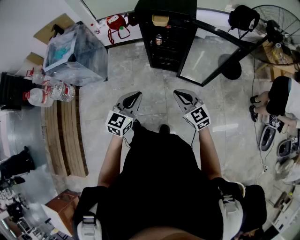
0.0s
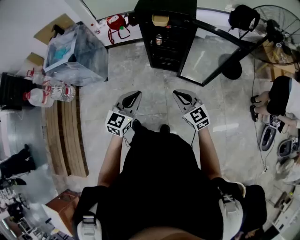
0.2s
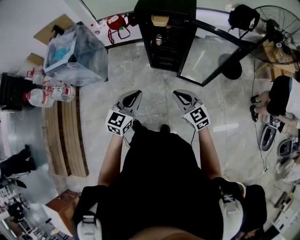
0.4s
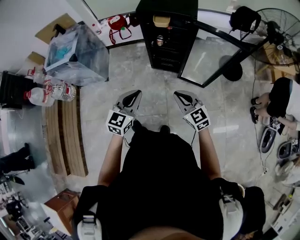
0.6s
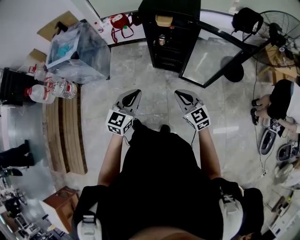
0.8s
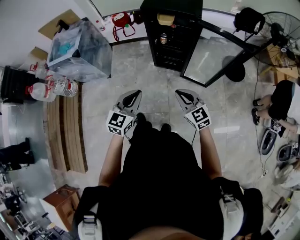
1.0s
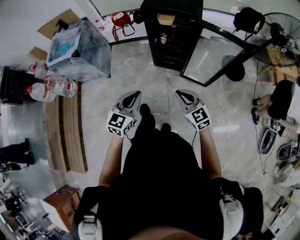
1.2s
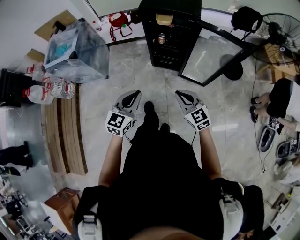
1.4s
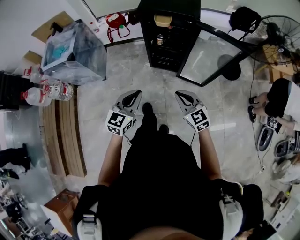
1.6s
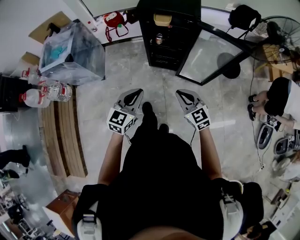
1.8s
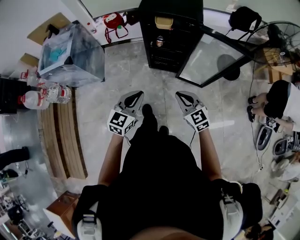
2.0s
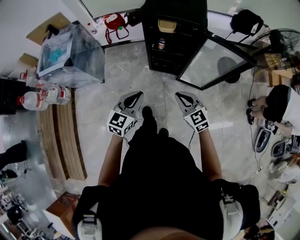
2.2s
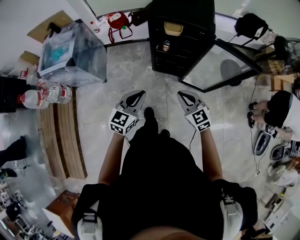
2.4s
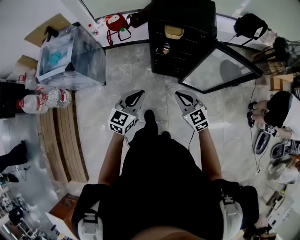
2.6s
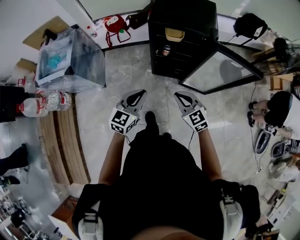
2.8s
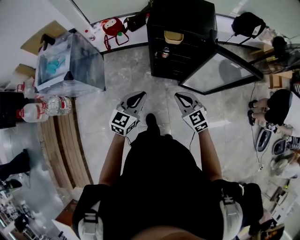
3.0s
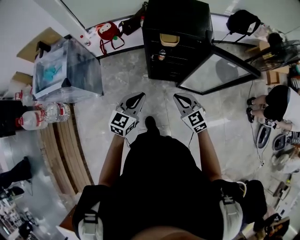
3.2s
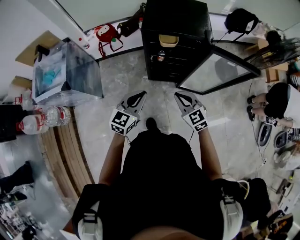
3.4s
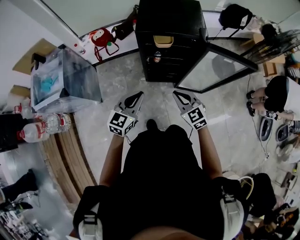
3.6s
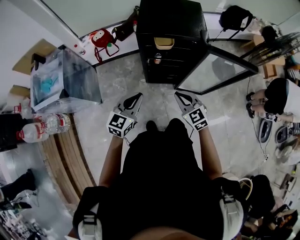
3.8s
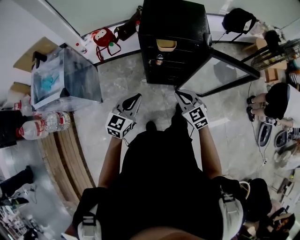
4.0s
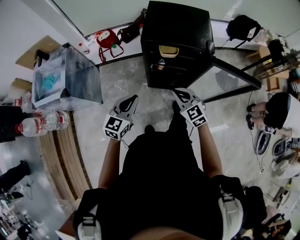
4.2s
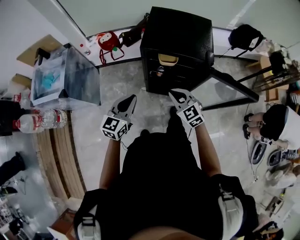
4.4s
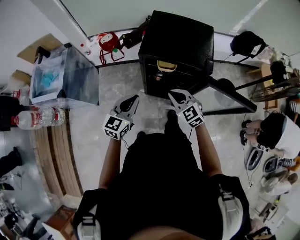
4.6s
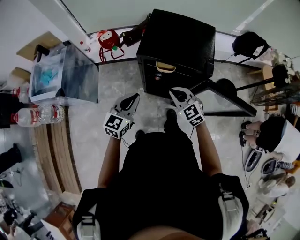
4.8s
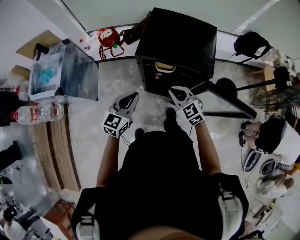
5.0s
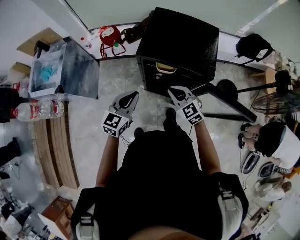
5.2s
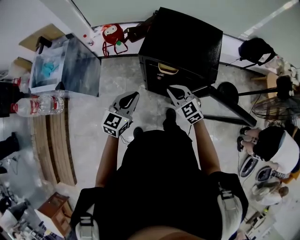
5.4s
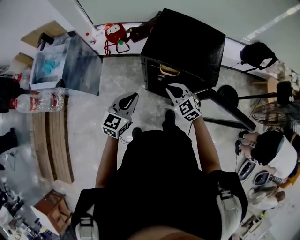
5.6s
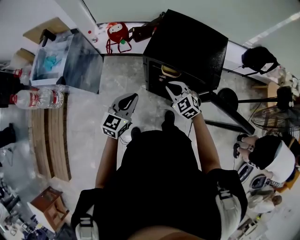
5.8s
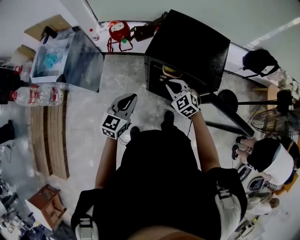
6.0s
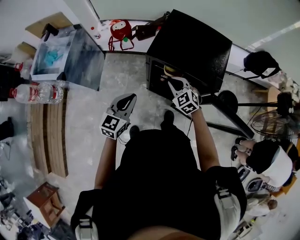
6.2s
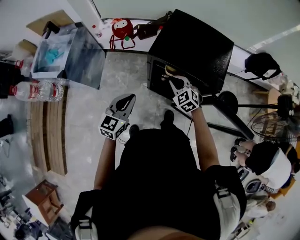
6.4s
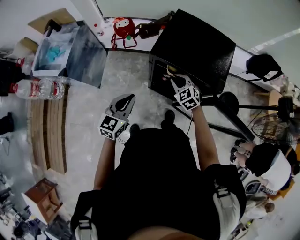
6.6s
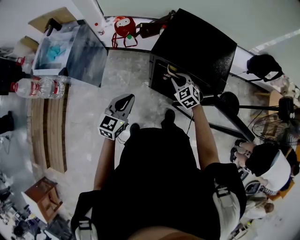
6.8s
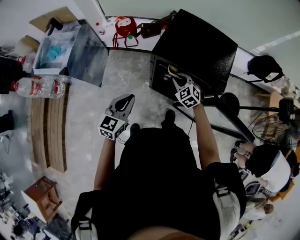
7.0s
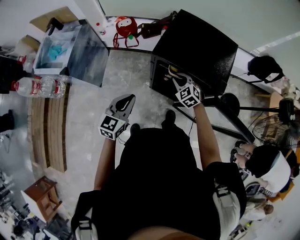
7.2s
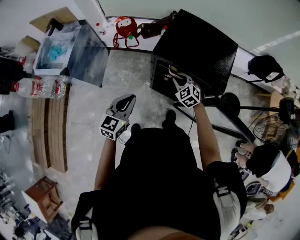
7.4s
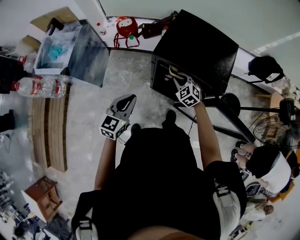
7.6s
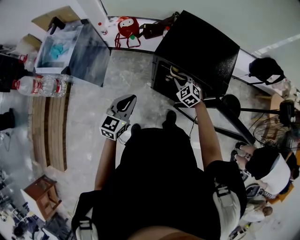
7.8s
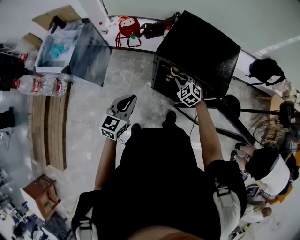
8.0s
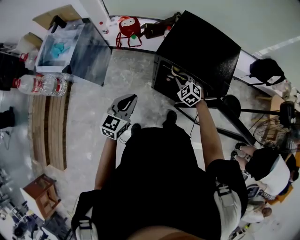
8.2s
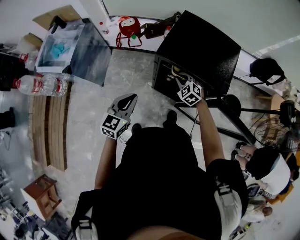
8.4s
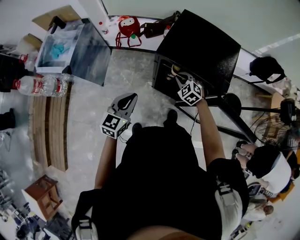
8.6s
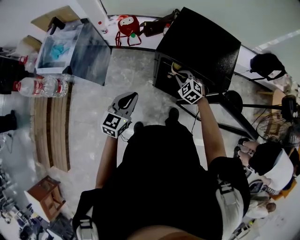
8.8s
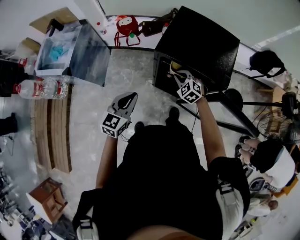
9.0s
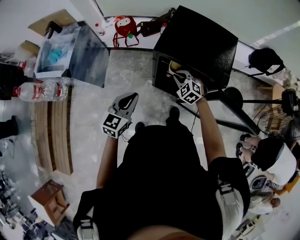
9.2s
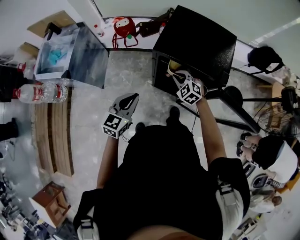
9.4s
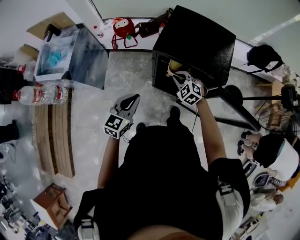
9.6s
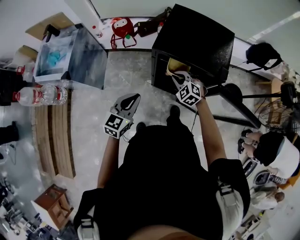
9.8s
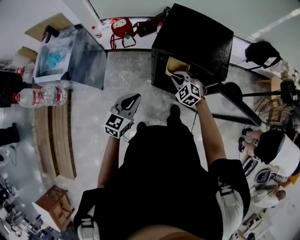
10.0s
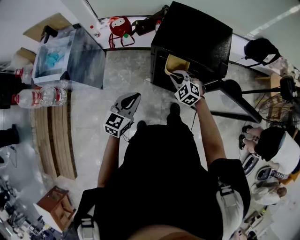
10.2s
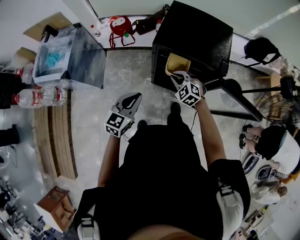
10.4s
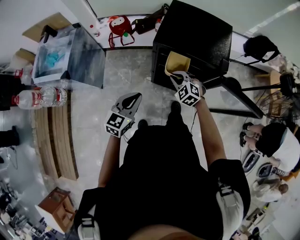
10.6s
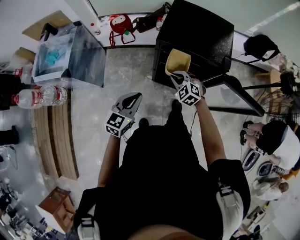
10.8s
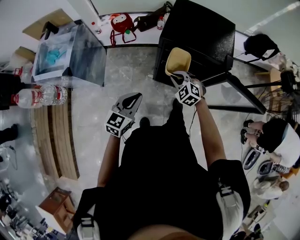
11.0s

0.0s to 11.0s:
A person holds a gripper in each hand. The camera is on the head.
0.0s to 1.6s: There are only small adjustments of the grippers.
1.6s to 3.2s: The left gripper goes approximately 20 cm forward. Meanwhile the right gripper travels forward and to the left by about 20 cm.
3.2s to 4.8s: Both grippers travel together forward, roughly 20 cm.
4.8s to 6.2s: The right gripper travels forward and downward by roughly 10 cm.
6.2s to 7.8s: The right gripper ends up about 5 cm from where it was.
7.8s to 9.4s: There are only small adjustments of the grippers.
9.4s to 11.0s: The right gripper is displaced backward and to the left by about 10 cm; the left gripper heads backward, covering approximately 5 cm.

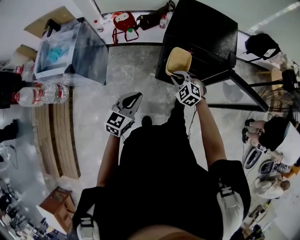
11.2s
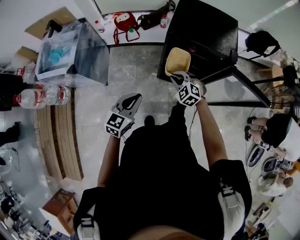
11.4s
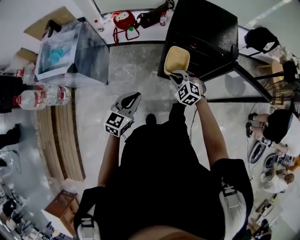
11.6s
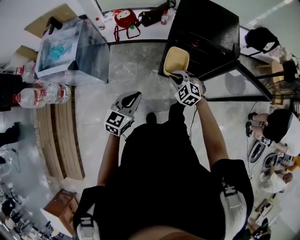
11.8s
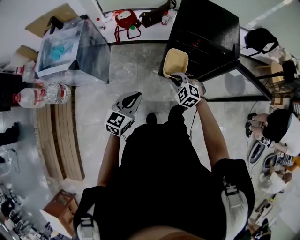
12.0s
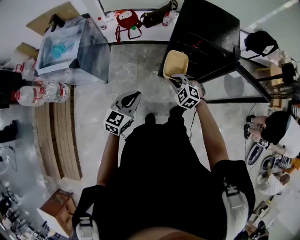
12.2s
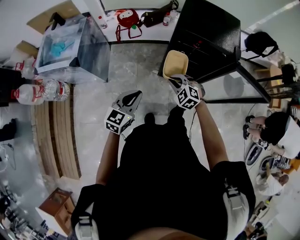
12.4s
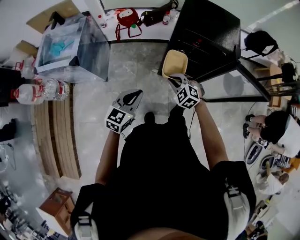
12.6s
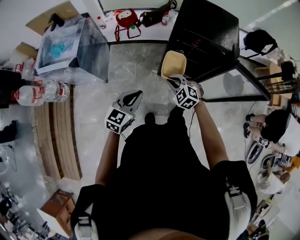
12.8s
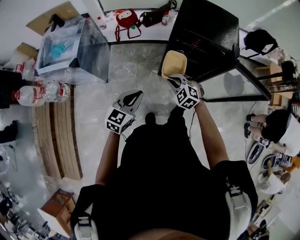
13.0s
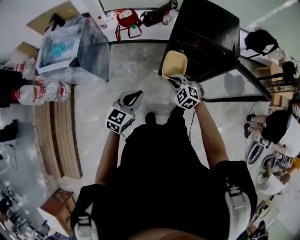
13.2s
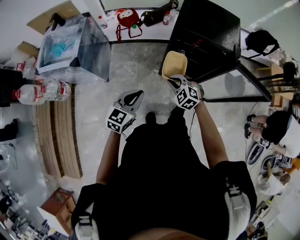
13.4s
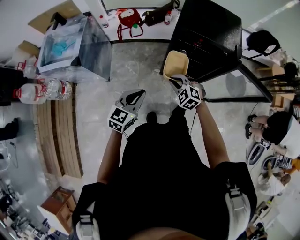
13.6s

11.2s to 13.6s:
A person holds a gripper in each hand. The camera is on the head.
11.2s to 12.4s: The right gripper shifts approximately 10 cm backward and to the left. Meanwhile the left gripper shifts approximately 5 cm to the left.
12.4s to 13.6s: The grippers stay close to where they were, moving slightly.

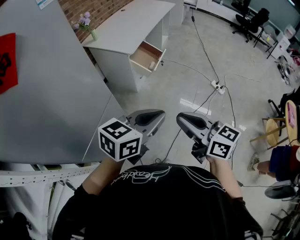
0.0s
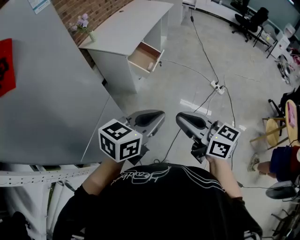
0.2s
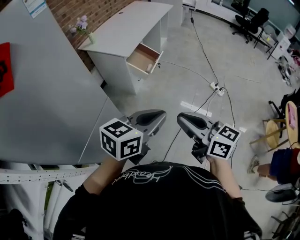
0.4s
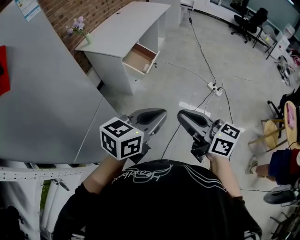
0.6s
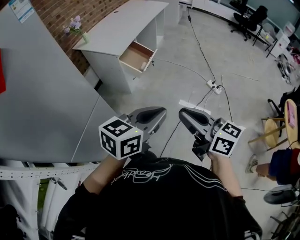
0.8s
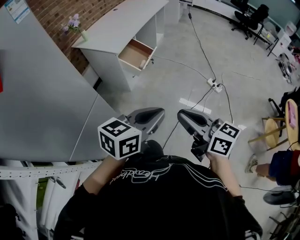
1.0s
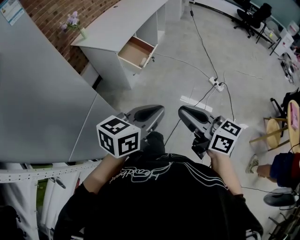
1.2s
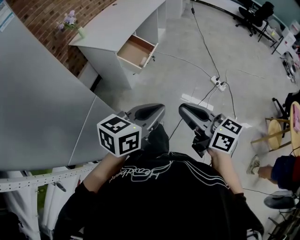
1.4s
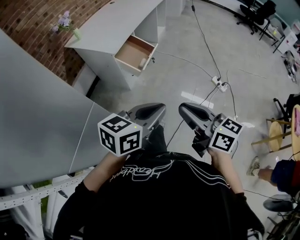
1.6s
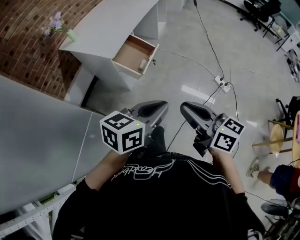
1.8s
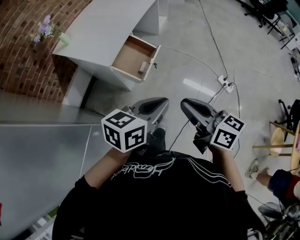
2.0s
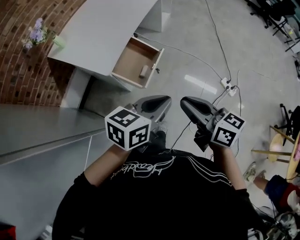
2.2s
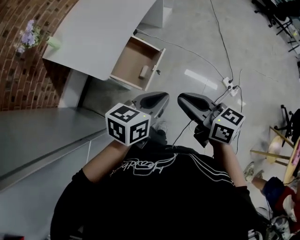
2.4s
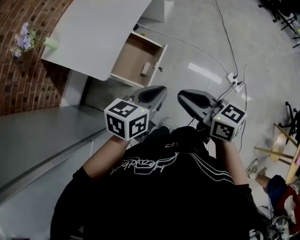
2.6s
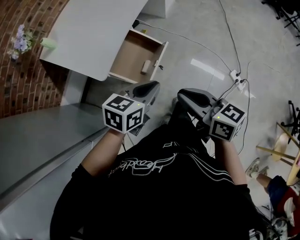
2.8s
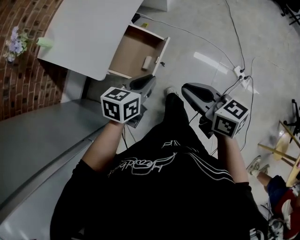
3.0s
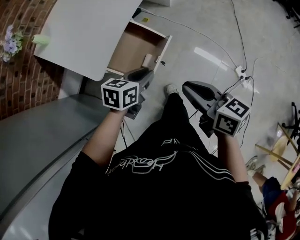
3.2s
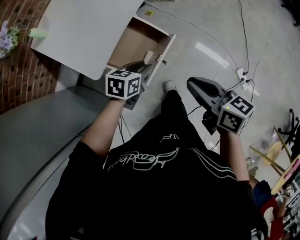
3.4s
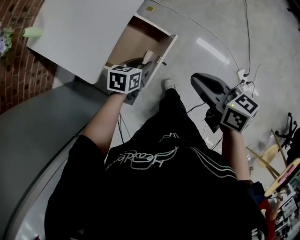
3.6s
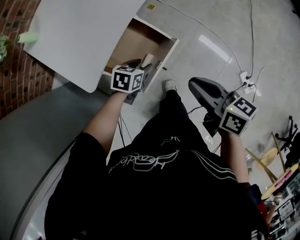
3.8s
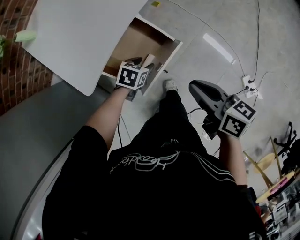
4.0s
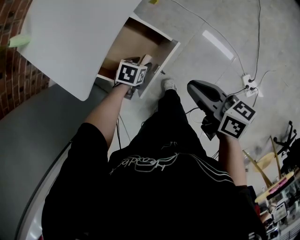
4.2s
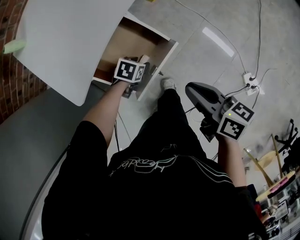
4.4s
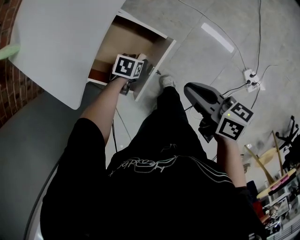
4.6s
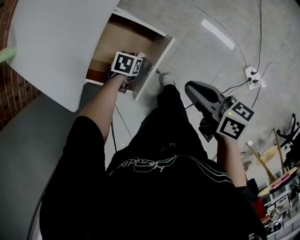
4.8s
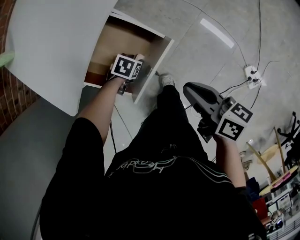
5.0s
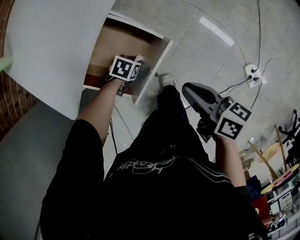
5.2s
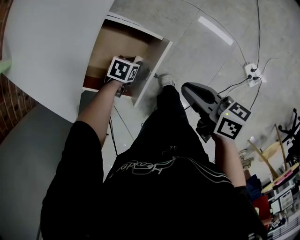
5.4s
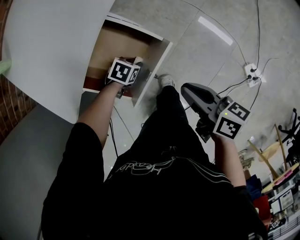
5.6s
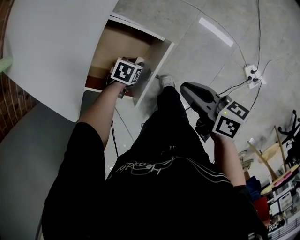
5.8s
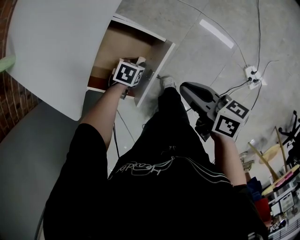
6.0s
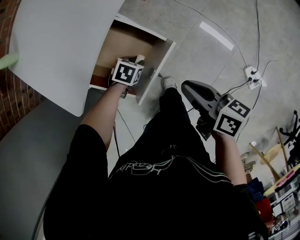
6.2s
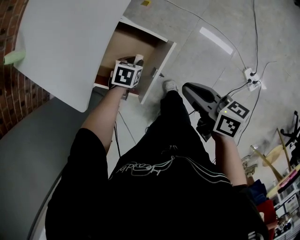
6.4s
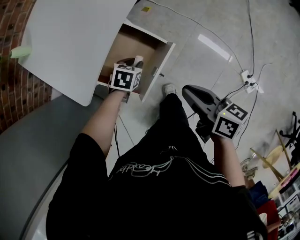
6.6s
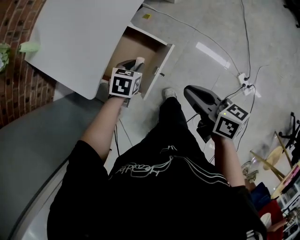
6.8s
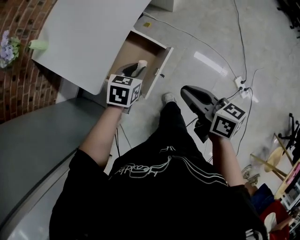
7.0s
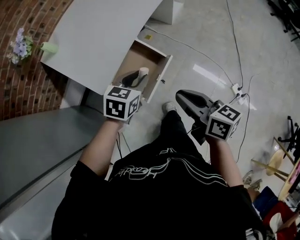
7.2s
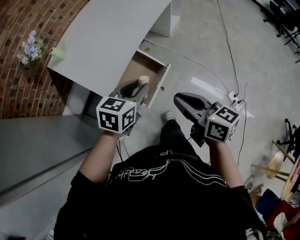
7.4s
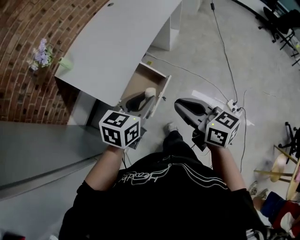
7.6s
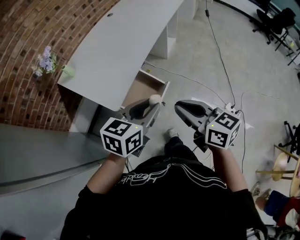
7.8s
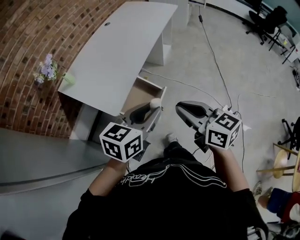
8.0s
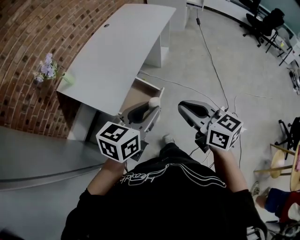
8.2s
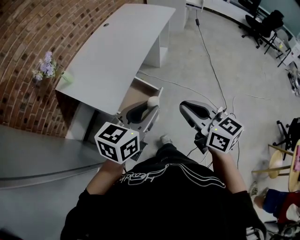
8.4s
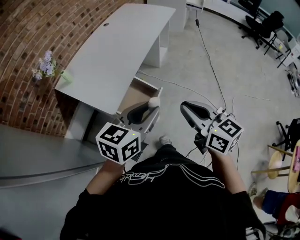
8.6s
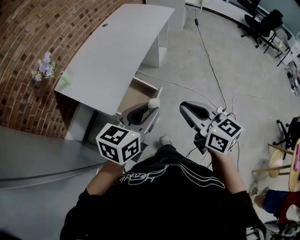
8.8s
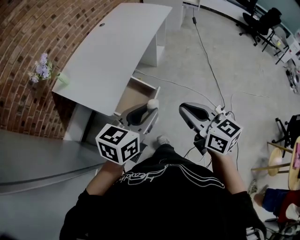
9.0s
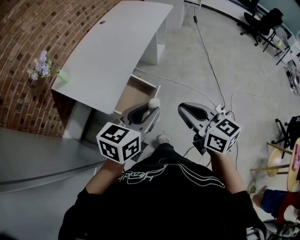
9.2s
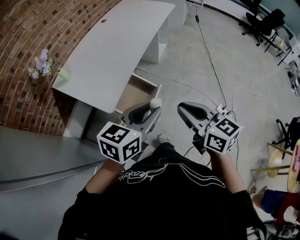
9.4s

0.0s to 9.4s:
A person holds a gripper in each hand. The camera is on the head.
0.0s to 1.6s: Both grippers move forward, to the right and downward, approximately 20 cm.
1.6s to 3.2s: The pair of grippers is taken forward, some 50 cm. The right gripper rotates about 20 degrees, while the left gripper moves downward, about 30 cm, and swivels some 30 degrees.
3.2s to 4.8s: The left gripper shifts approximately 30 cm downward, points its fingers some 30 degrees further downward, and opens; the right gripper moves downward, roughly 15 cm, and rotates some 20 degrees.
4.8s to 6.2s: The left gripper closes up.
6.2s to 7.8s: Both grippers travel together upward and backward, approximately 50 cm. The right gripper turns by some 40 degrees, while the left gripper tips its fingers upward by some 50 degrees.
7.8s to 9.4s: The left gripper shifts by roughly 5 cm.

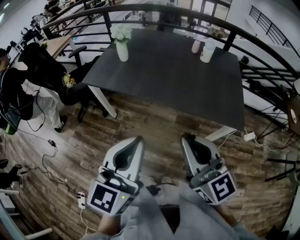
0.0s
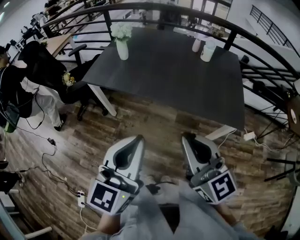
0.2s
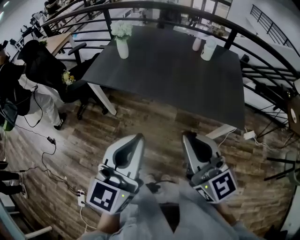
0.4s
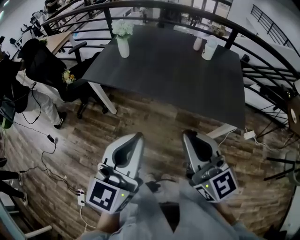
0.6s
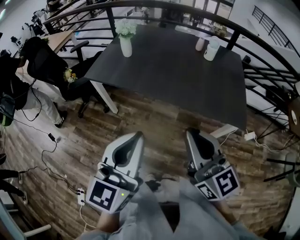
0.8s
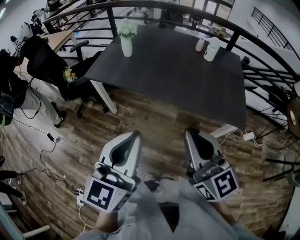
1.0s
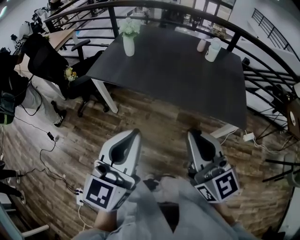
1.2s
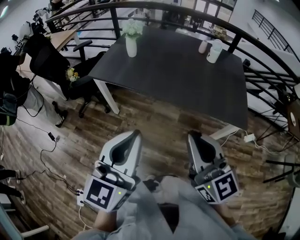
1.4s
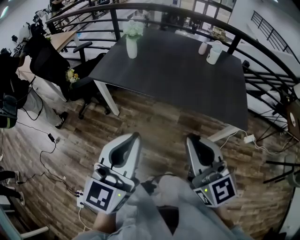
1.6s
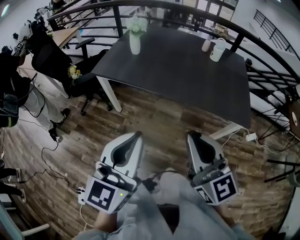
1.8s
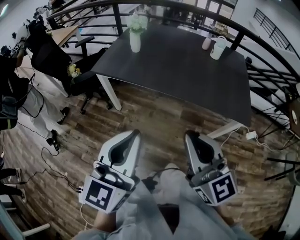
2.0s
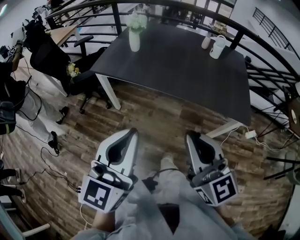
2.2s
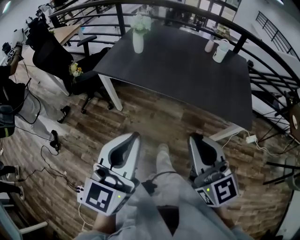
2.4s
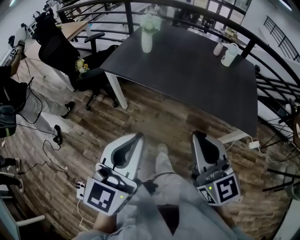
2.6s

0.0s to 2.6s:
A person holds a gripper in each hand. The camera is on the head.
0.0s to 1.2s: The grippers stay close to where they were, moving slightly.
1.2s to 2.6s: The left gripper moves to the left, about 5 cm, while the right gripper ends up approximately 5 cm from where it was.
